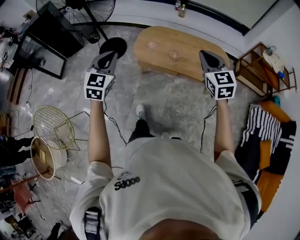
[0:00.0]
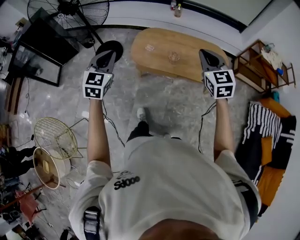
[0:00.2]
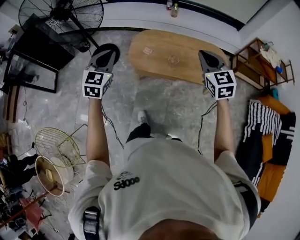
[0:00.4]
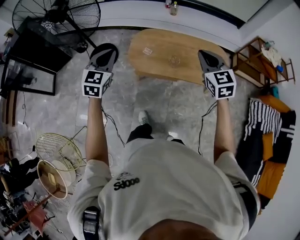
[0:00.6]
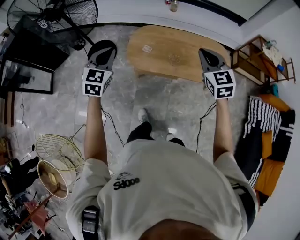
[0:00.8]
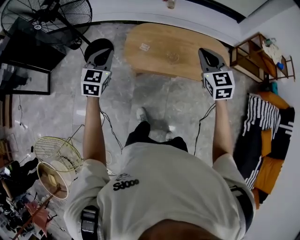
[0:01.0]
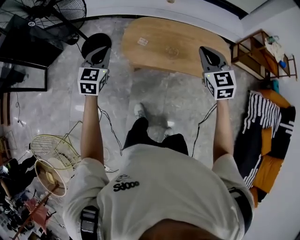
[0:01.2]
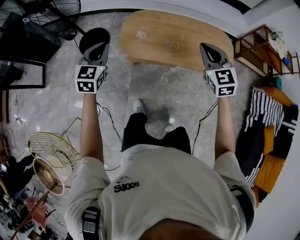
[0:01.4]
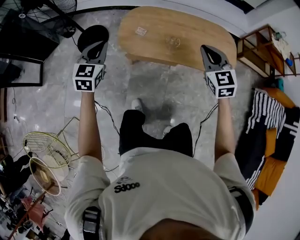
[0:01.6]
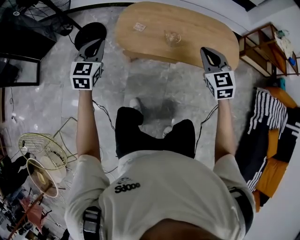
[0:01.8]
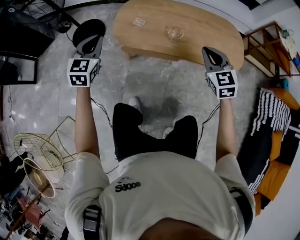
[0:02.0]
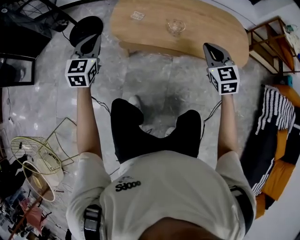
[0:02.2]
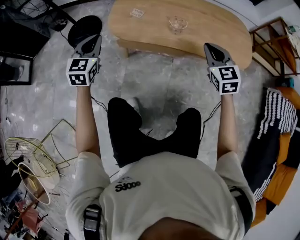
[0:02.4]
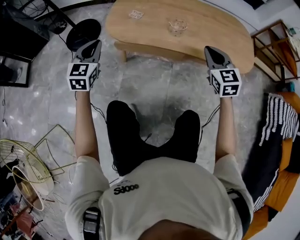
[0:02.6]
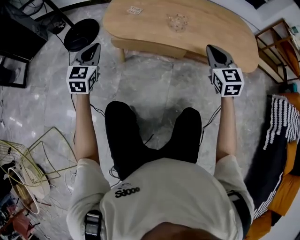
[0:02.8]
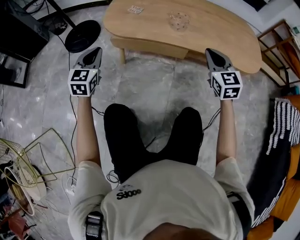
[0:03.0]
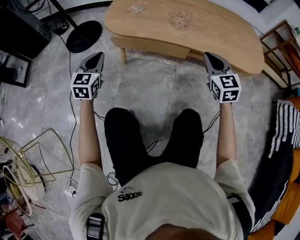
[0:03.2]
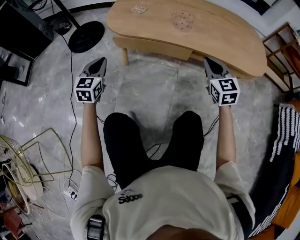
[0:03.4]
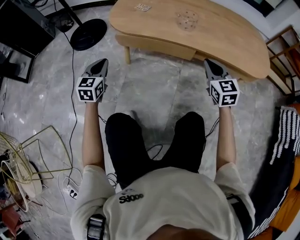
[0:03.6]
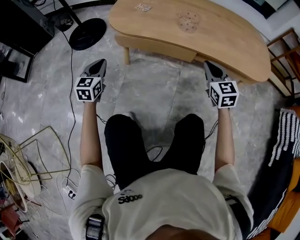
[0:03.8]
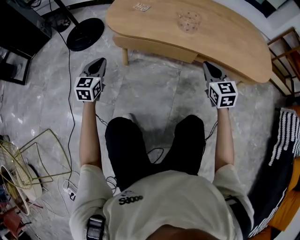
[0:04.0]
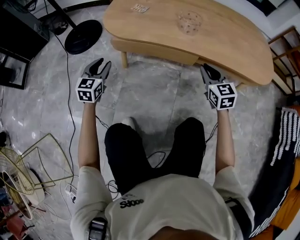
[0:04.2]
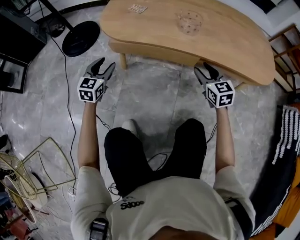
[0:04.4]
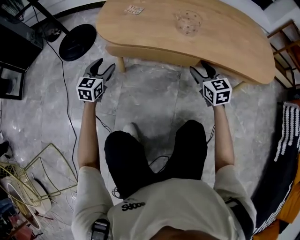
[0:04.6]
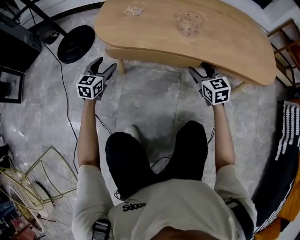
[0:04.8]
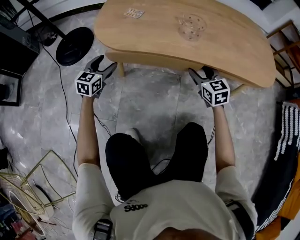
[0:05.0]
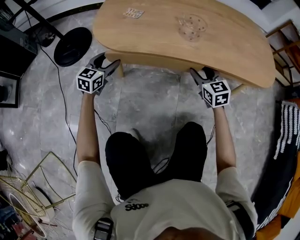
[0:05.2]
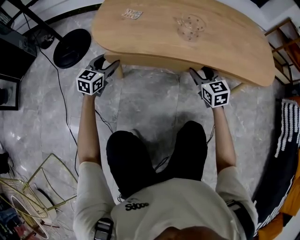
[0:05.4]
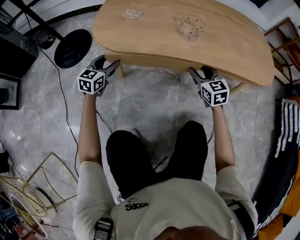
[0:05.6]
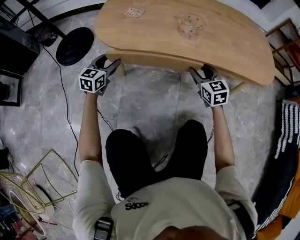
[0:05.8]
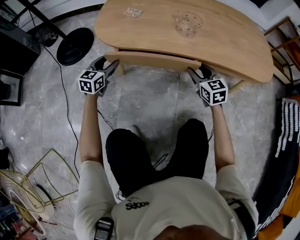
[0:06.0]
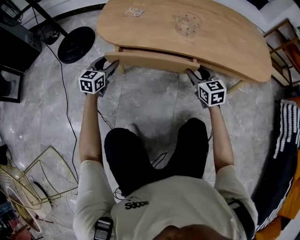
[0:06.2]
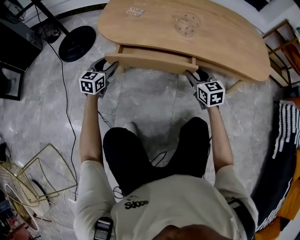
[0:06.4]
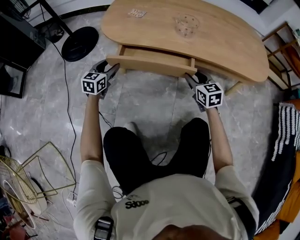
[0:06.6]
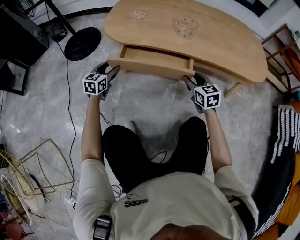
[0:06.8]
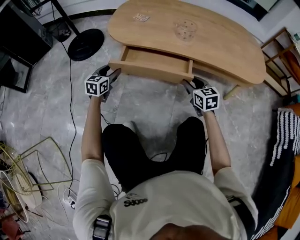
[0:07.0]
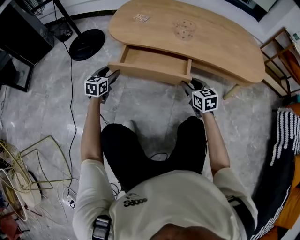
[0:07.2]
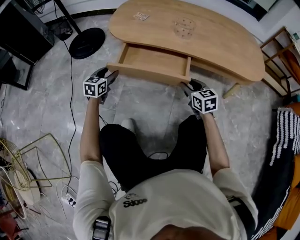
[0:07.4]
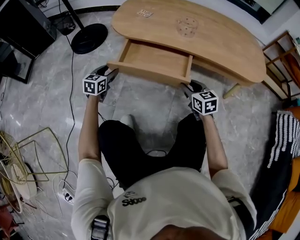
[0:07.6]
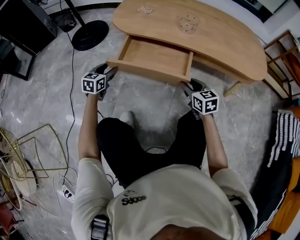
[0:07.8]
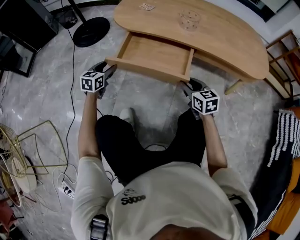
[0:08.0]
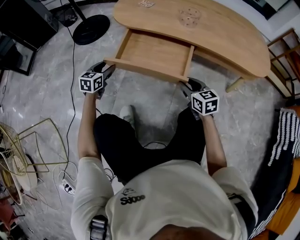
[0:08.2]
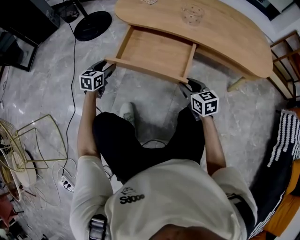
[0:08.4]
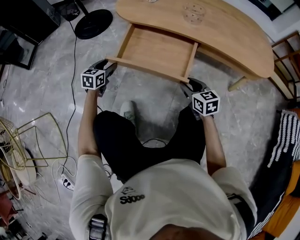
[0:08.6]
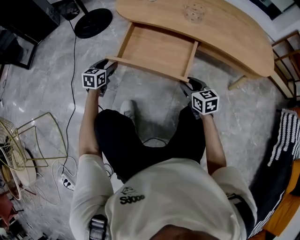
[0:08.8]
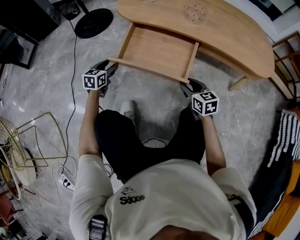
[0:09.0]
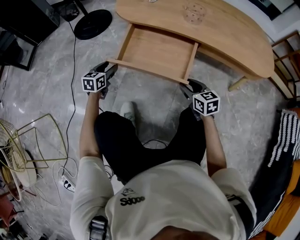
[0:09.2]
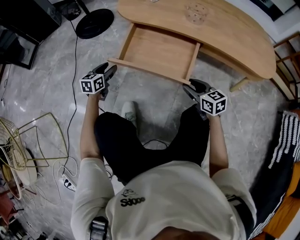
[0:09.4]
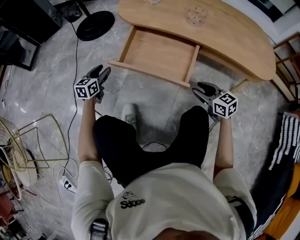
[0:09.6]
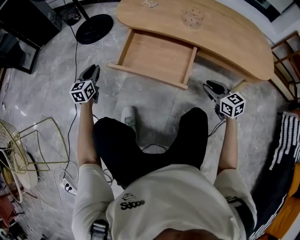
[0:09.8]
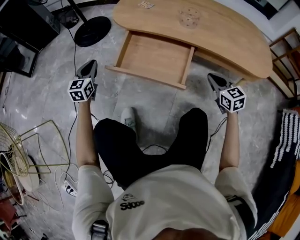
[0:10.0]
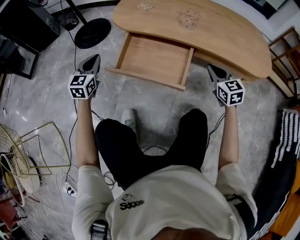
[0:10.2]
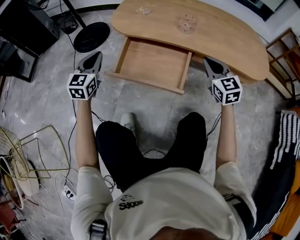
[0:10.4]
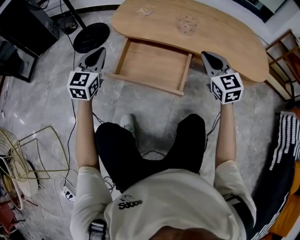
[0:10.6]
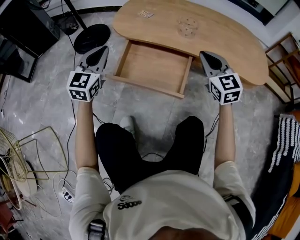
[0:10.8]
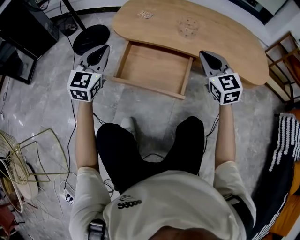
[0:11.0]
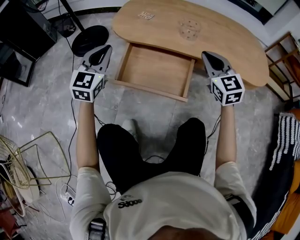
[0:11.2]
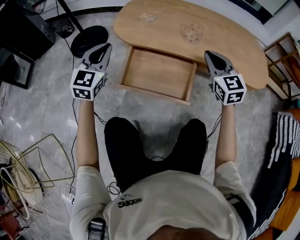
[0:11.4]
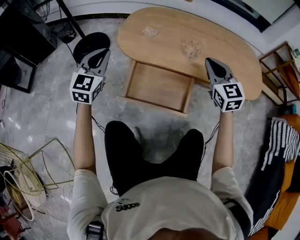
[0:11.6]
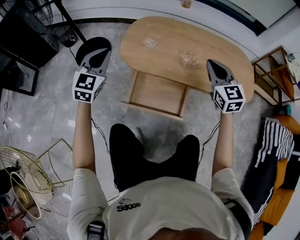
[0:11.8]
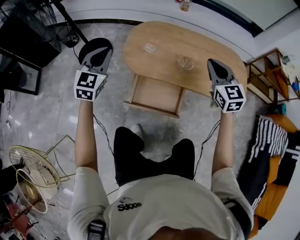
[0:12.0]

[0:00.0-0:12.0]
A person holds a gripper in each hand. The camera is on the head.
0:00.0 to 0:01.6: The left gripper moves forward and downward, about 30 cm. Meanwhile the right gripper shifts about 25 cm downward and forward.
0:01.6 to 0:03.0: The two grippers go about 35 cm downward.
0:03.0 to 0:04.4: The right gripper goes approximately 15 cm downward, and opens up; the left gripper heads downward and forward, covering about 15 cm, and opens up.
0:04.4 to 0:06.0: The left gripper shifts about 5 cm forward.
0:06.0 to 0:07.6: Both grippers move backward, about 15 cm.
0:07.6 to 0:09.0: The left gripper shifts by approximately 5 cm; the right gripper changes place by roughly 5 cm.
0:09.0 to 0:10.4: The left gripper travels upward by approximately 20 cm, swivels approximately 30 degrees, and closes its fingers, while the right gripper is displaced upward, to the right and forward by about 20 cm, changes its angle by roughly 30 degrees, and closes.
0:10.4 to 0:12.0: Both grippers travel together upward, approximately 35 cm.

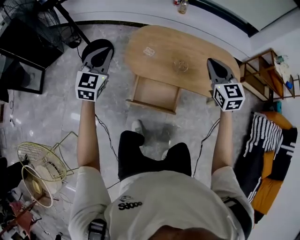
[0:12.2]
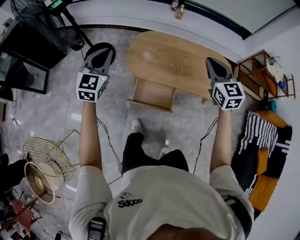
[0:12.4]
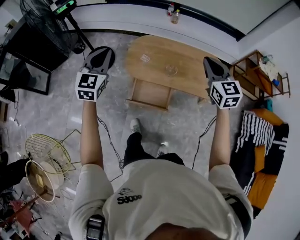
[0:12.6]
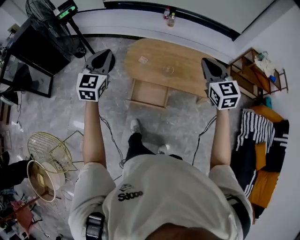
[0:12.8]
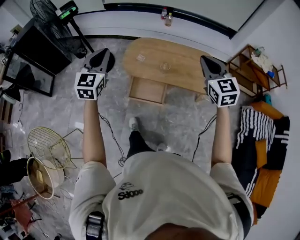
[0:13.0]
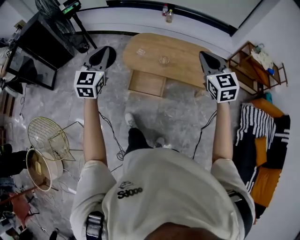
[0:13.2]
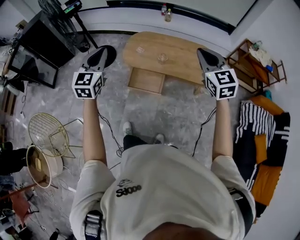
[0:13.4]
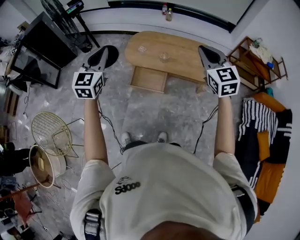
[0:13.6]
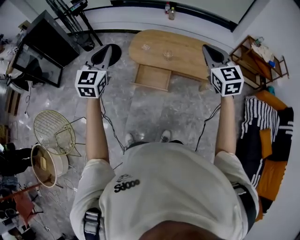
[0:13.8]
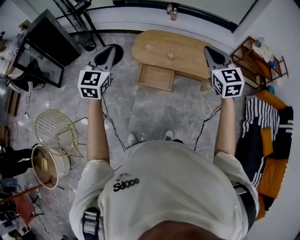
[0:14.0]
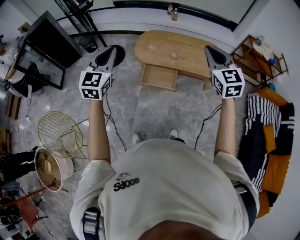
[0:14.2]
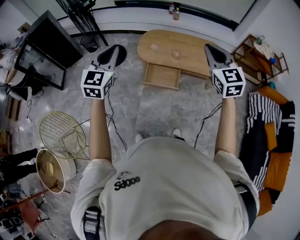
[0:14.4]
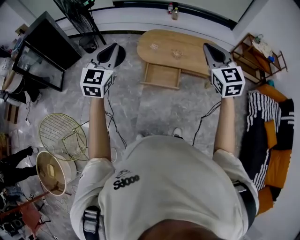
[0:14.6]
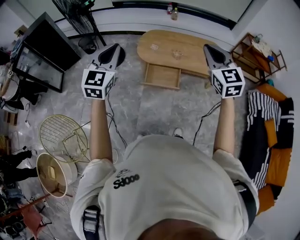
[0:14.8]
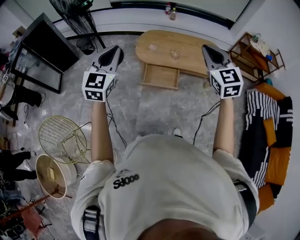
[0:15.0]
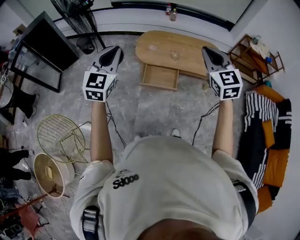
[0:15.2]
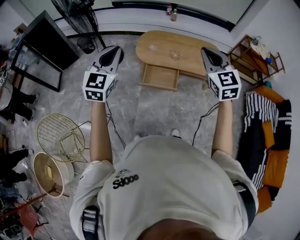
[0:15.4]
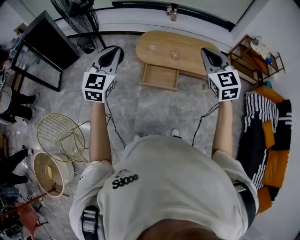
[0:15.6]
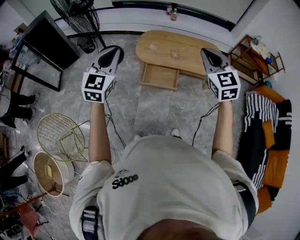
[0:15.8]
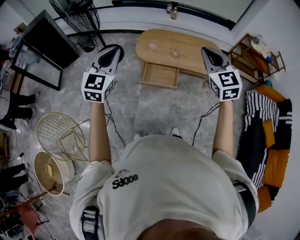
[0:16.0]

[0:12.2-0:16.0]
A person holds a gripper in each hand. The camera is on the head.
0:12.2 to 0:13.4: The two grippers go approximately 35 cm backward and upward.
0:13.4 to 0:14.8: The two grippers go approximately 15 cm to the left and backward.
0:14.8 to 0:16.0: The grippers stay close to where they were, moving slightly.

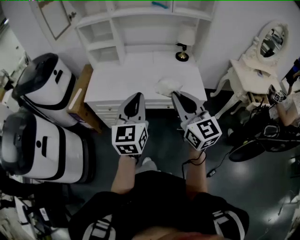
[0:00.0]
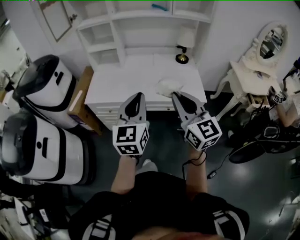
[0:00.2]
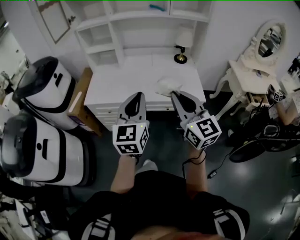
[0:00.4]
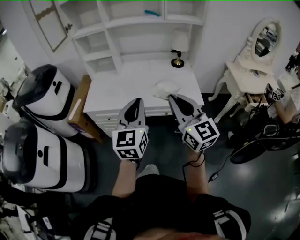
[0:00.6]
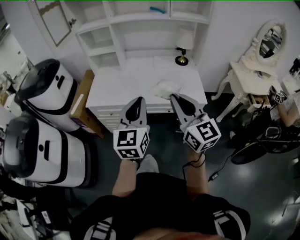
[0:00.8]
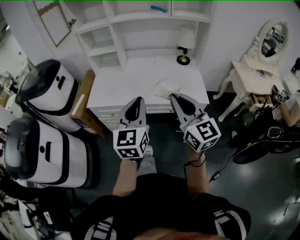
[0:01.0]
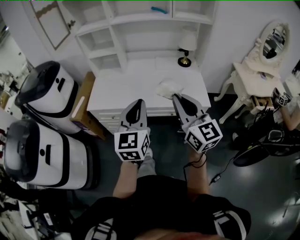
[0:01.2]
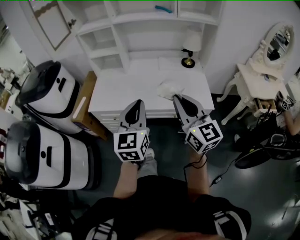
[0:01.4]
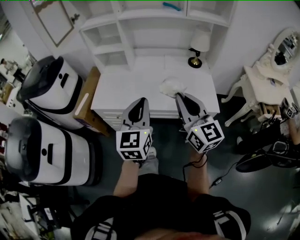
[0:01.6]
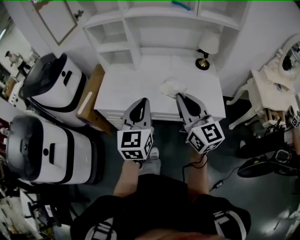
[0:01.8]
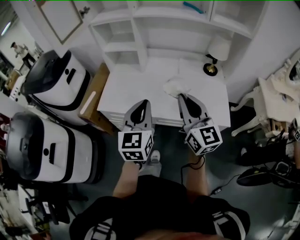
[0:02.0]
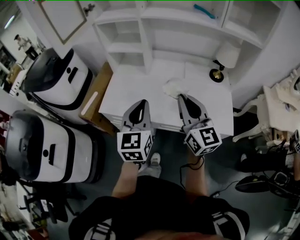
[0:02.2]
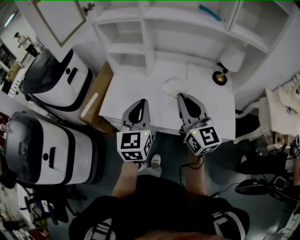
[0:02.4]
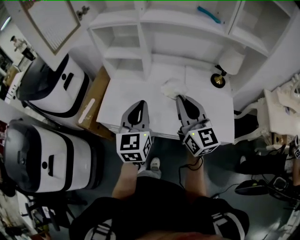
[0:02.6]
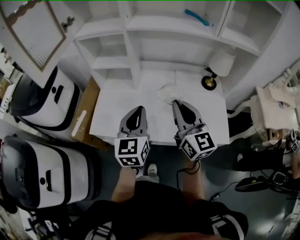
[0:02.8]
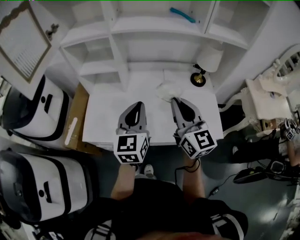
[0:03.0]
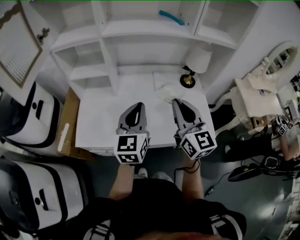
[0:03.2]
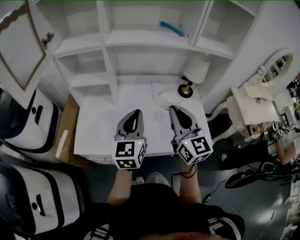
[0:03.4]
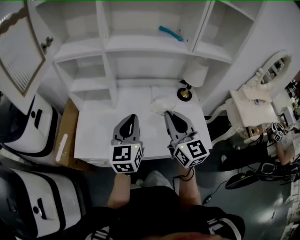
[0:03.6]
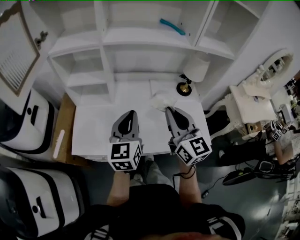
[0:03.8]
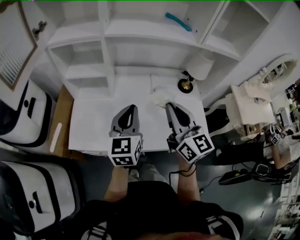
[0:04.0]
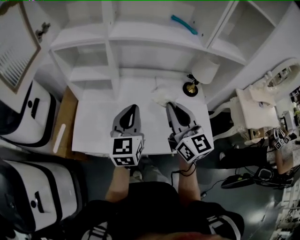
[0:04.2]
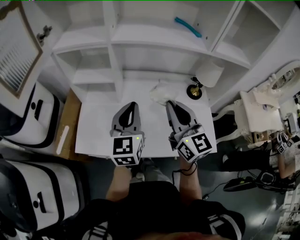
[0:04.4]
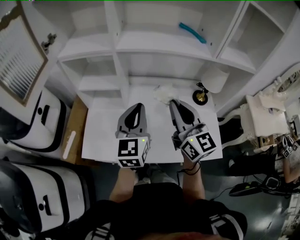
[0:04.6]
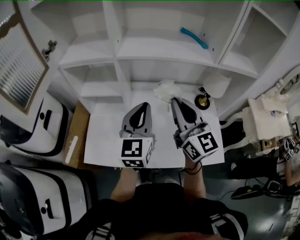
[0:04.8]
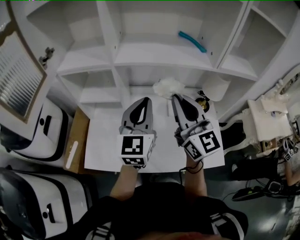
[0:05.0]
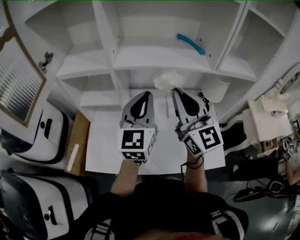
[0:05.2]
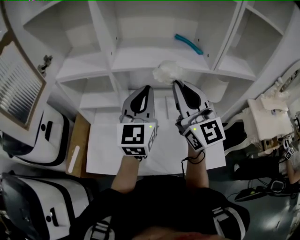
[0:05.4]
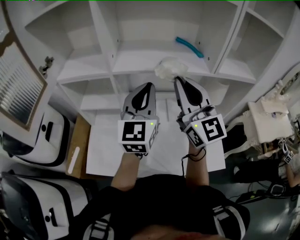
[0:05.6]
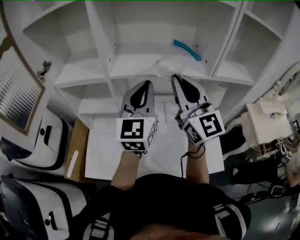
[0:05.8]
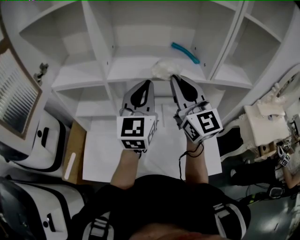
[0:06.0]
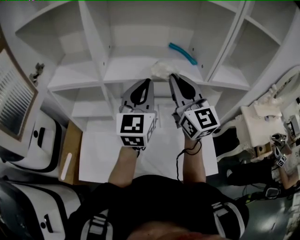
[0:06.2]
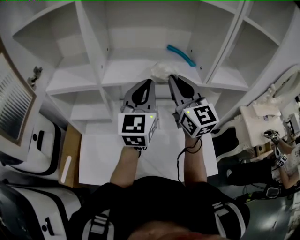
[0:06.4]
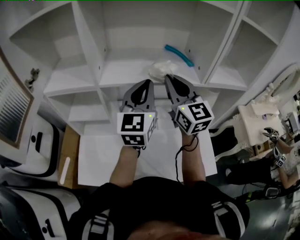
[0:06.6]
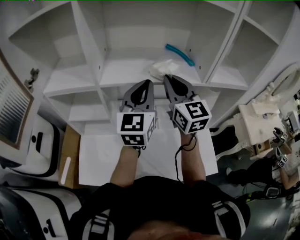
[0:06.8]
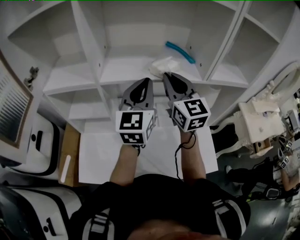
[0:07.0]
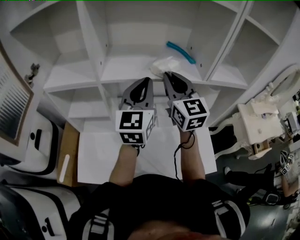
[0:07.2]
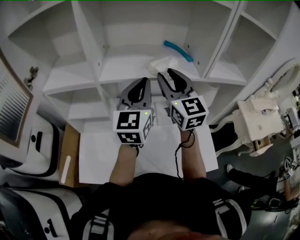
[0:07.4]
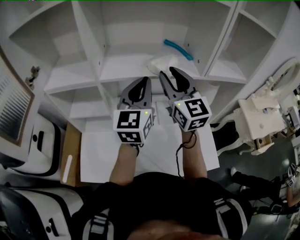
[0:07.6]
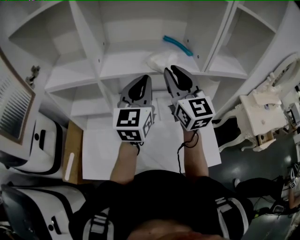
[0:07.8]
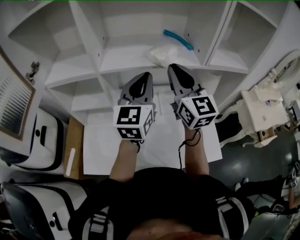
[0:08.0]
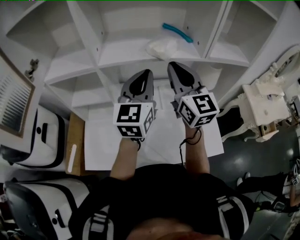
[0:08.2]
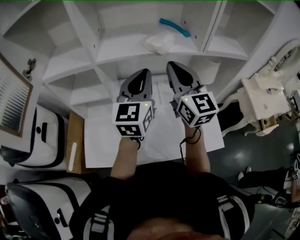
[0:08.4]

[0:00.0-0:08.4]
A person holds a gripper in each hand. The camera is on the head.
0:00.0 to 0:01.4: The right gripper is displaced forward by about 5 cm; the left gripper changes place by some 5 cm.
0:01.4 to 0:02.8: Both grippers move forward, some 25 cm.
0:02.8 to 0:04.2: The grippers both shift forward by about 5 cm.
0:04.2 to 0:05.6: Both grippers travel together upward and forward, about 20 cm. The right gripper changes its angle by some 20 degrees.
0:05.6 to 0:07.0: The left gripper shifts approximately 5 cm forward. The right gripper is displaced forward by roughly 10 cm.
0:07.0 to 0:08.4: Both grippers travel together backward, about 5 cm. The right gripper opens, then closes again.
